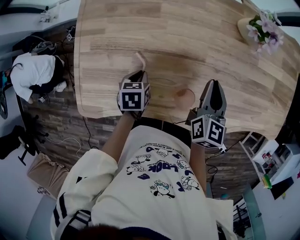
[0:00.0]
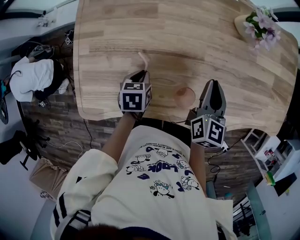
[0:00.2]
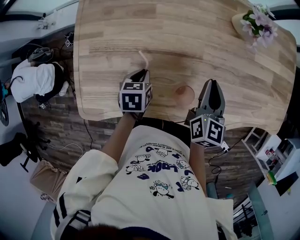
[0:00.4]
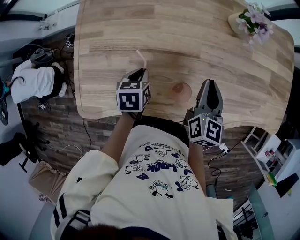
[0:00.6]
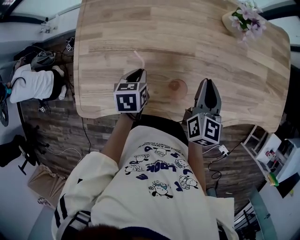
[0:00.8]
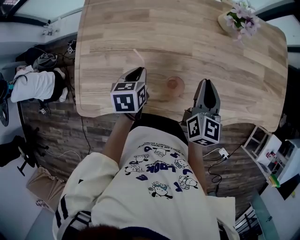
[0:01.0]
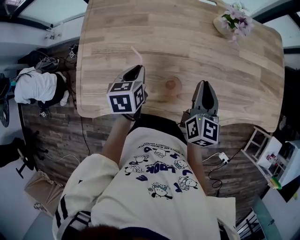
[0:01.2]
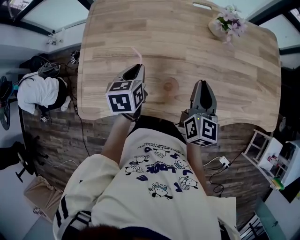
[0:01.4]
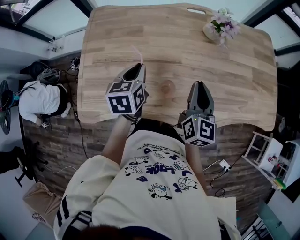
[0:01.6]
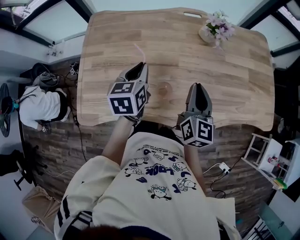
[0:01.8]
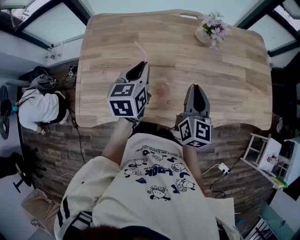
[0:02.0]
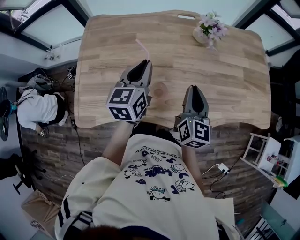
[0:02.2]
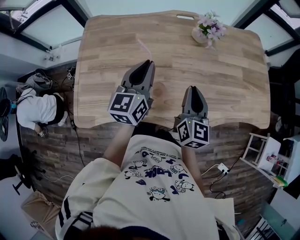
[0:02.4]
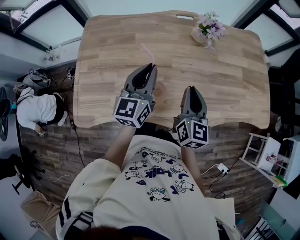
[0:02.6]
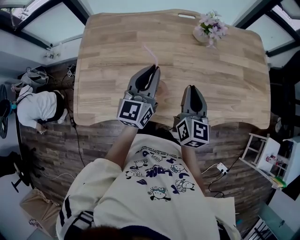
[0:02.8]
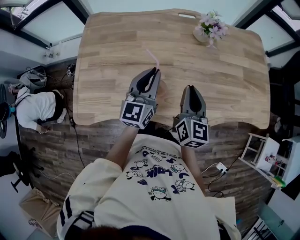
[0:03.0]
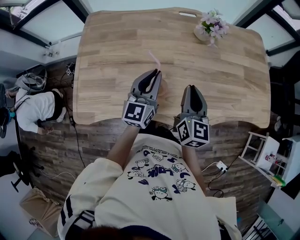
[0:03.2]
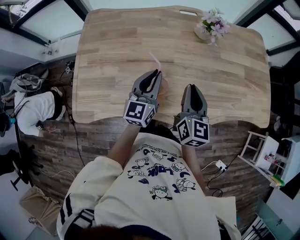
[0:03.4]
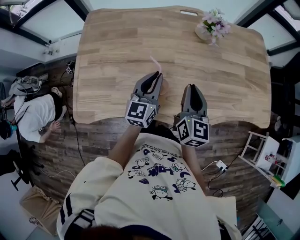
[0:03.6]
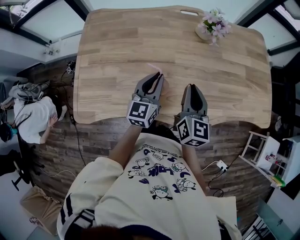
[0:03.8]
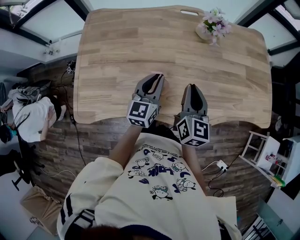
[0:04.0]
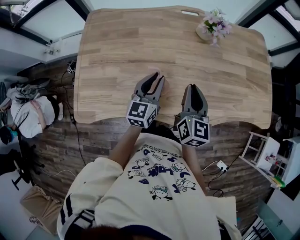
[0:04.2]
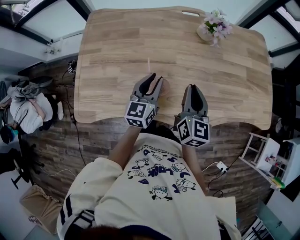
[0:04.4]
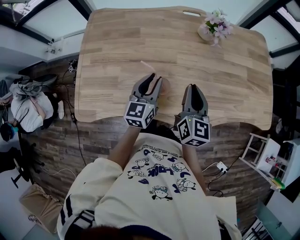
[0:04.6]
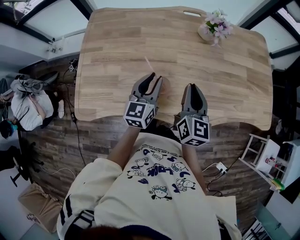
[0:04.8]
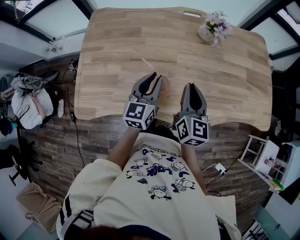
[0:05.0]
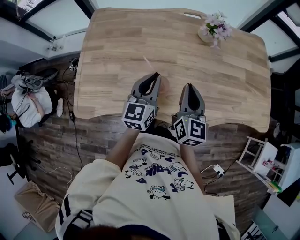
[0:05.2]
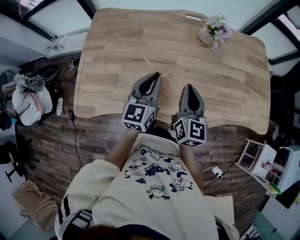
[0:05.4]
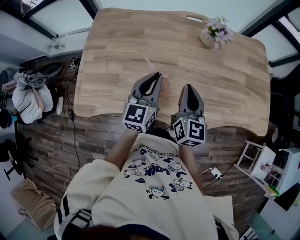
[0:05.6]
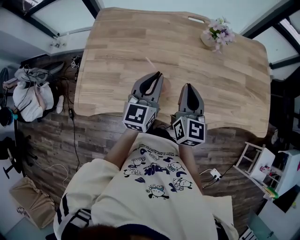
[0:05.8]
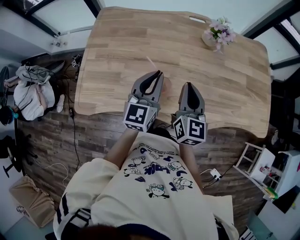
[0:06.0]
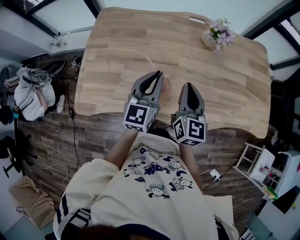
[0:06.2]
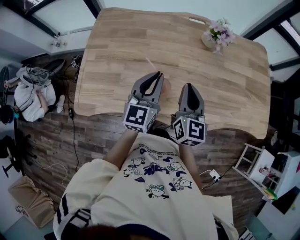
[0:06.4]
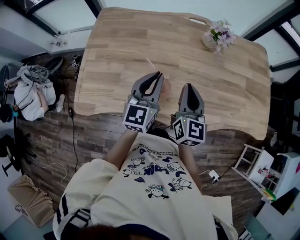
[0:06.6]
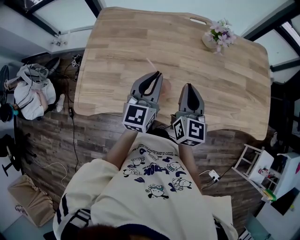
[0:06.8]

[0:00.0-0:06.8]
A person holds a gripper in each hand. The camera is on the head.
0:00.0 to 0:01.4: The right gripper moves upward and backward, approximately 10 cm. Meanwhile the left gripper heads upward, covering about 15 cm, and swivels about 20 degrees.
0:01.4 to 0:02.8: The left gripper is displaced to the right and upward by about 15 cm, and tips its fingers upward by about 40 degrees.
0:02.8 to 0:04.0: The left gripper goes about 10 cm downward.
0:04.0 to 0:05.4: The left gripper heads upward, covering roughly 5 cm.
0:05.4 to 0:06.8: The grippers make only small movements.

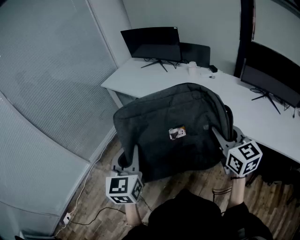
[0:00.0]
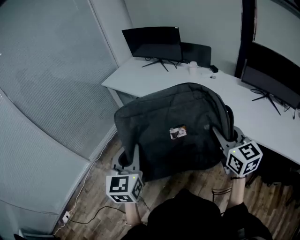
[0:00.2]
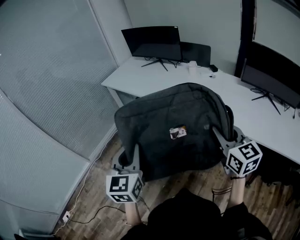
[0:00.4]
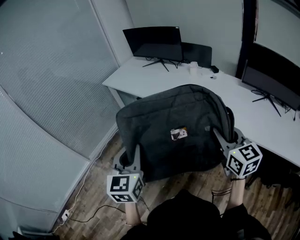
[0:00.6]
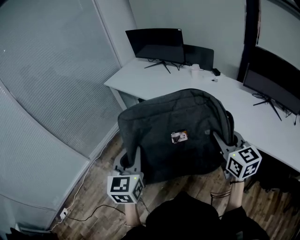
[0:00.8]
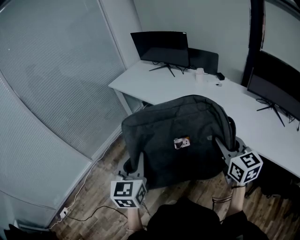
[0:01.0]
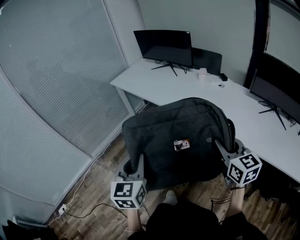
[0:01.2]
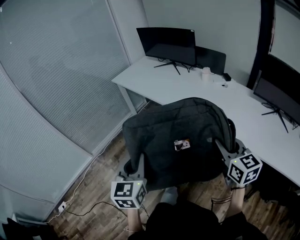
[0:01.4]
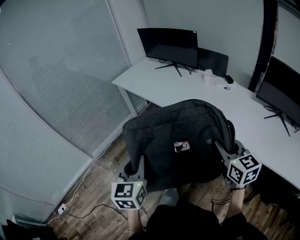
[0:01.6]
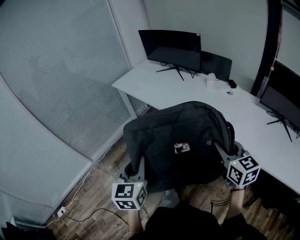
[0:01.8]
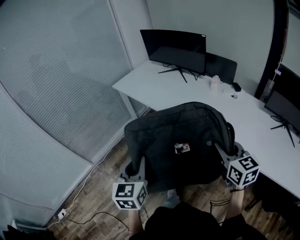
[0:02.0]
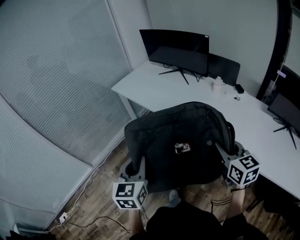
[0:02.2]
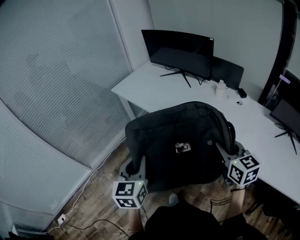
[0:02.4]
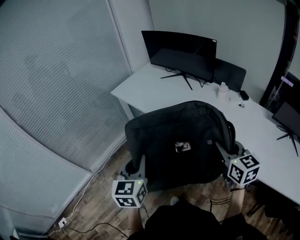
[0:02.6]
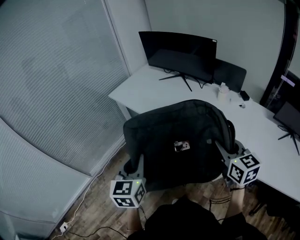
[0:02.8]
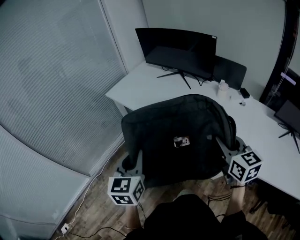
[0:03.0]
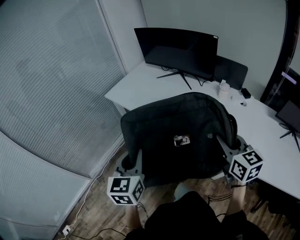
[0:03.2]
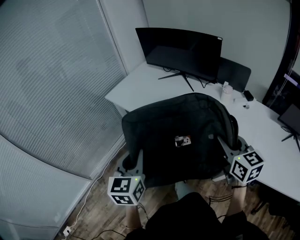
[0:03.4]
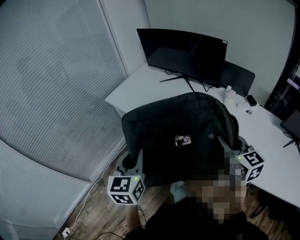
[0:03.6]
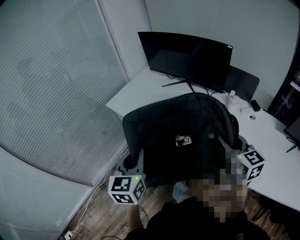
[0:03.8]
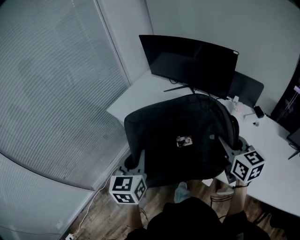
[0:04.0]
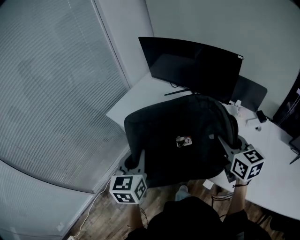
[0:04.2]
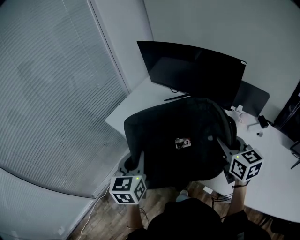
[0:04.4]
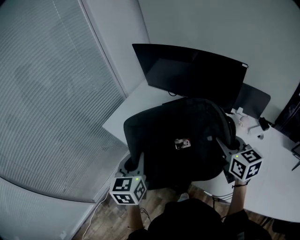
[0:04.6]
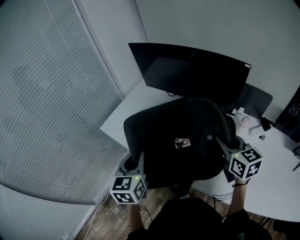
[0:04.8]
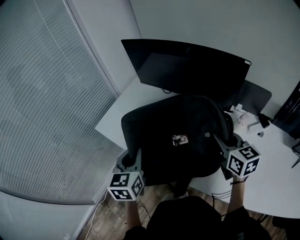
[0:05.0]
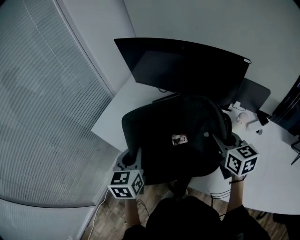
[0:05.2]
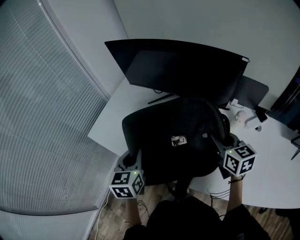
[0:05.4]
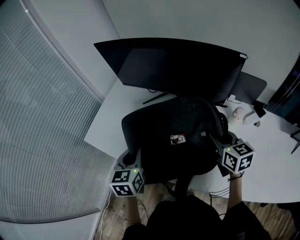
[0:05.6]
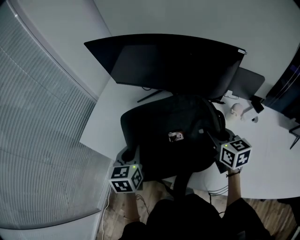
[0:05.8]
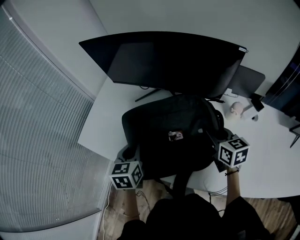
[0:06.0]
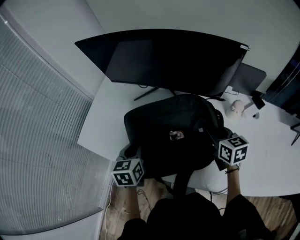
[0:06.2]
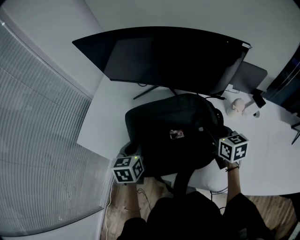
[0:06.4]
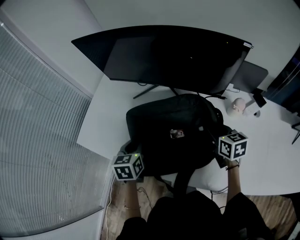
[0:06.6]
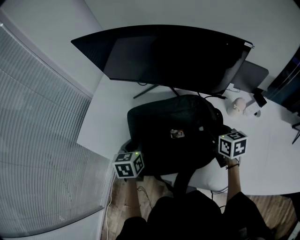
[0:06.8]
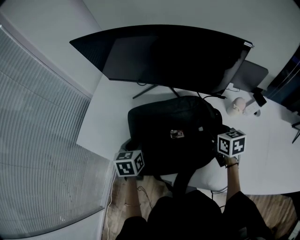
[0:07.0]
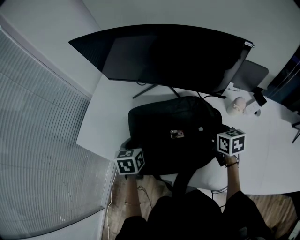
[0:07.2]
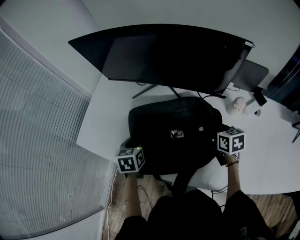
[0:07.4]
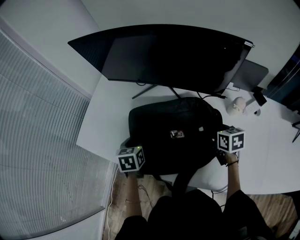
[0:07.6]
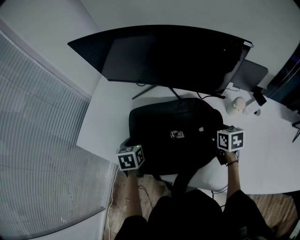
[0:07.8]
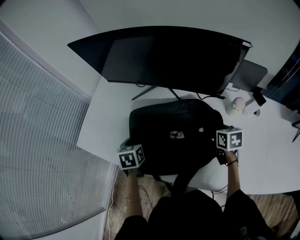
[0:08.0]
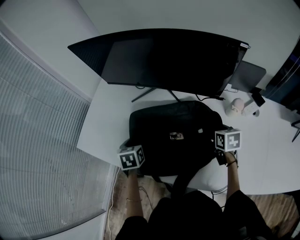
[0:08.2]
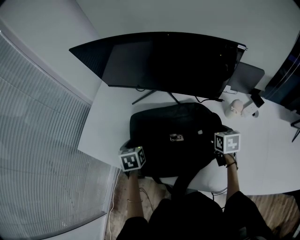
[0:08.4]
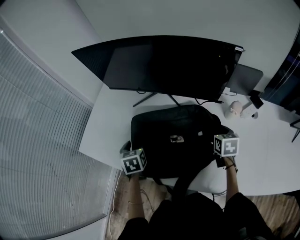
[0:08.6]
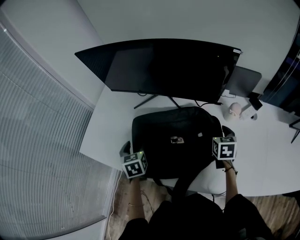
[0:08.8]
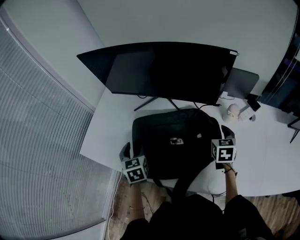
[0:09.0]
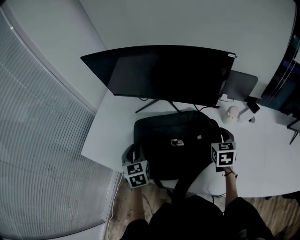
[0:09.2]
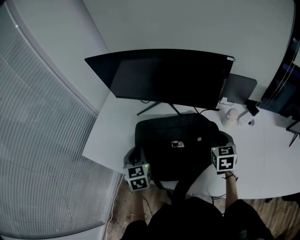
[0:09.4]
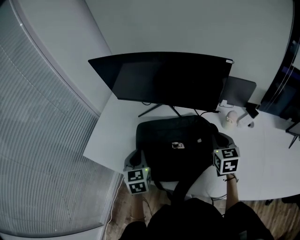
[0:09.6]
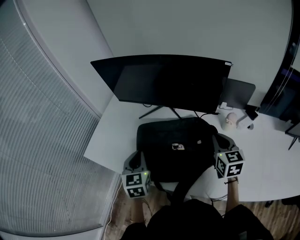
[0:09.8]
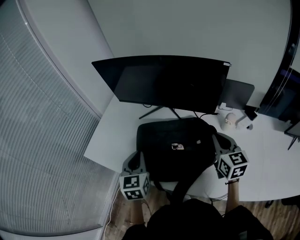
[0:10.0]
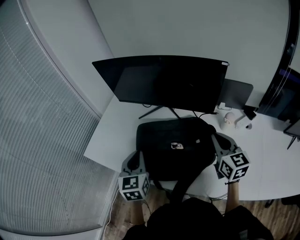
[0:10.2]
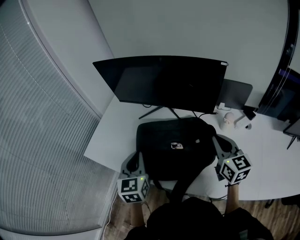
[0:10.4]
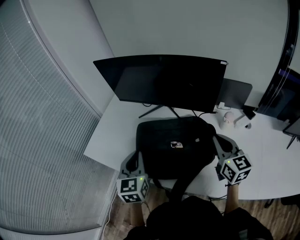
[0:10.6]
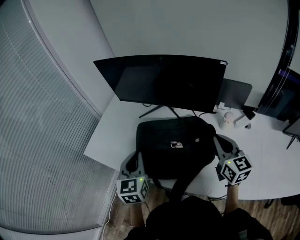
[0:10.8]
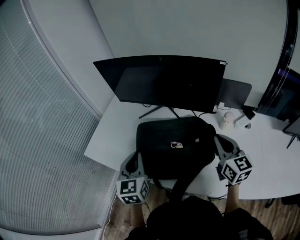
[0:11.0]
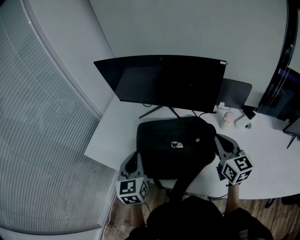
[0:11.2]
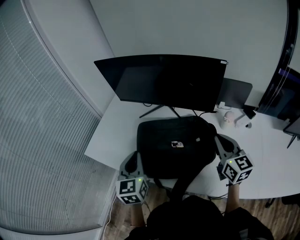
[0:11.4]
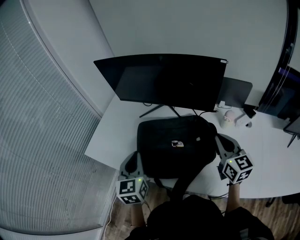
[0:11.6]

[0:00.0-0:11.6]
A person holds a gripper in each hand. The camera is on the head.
0:00.0 to 0:01.4: The grippers make only small movements.
0:01.4 to 0:02.8: Both grippers move forward, roughly 30 cm.
0:02.8 to 0:04.4: Both grippers move forward, some 30 cm.
0:04.4 to 0:05.8: The right gripper travels forward, downward and to the right by some 20 cm. Meanwhile the left gripper shifts roughly 20 cm forward and downward.
0:05.8 to 0:07.2: The left gripper moves downward and forward, roughly 10 cm; the right gripper shifts roughly 10 cm downward.
0:07.2 to 0:08.8: The right gripper swivels roughly 20 degrees, and opens its fingers; the left gripper opens up.
0:08.8 to 0:10.2: Both grippers travel together upward and backward, some 15 cm. The left gripper turns by about 20 degrees, and closes its fingers; the right gripper rotates some 30 degrees, and closes.
0:10.2 to 0:11.6: The grippers move only a little.

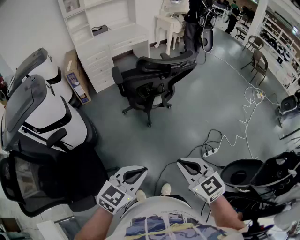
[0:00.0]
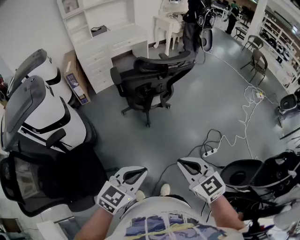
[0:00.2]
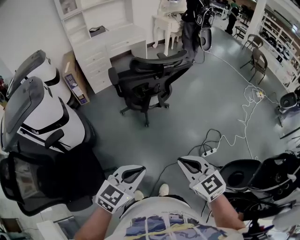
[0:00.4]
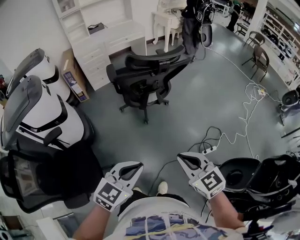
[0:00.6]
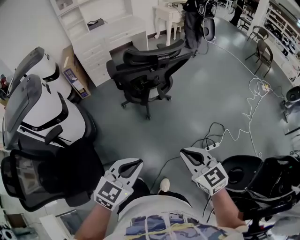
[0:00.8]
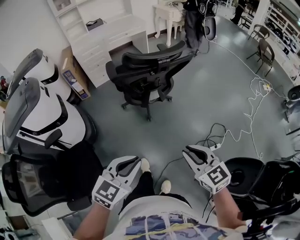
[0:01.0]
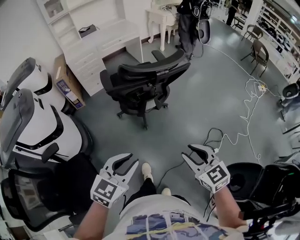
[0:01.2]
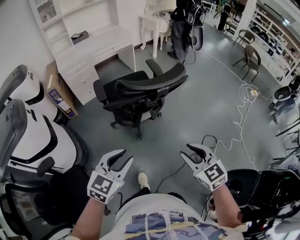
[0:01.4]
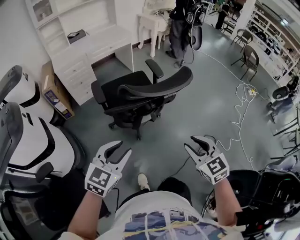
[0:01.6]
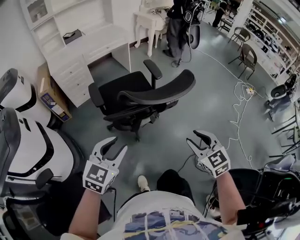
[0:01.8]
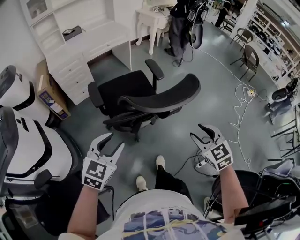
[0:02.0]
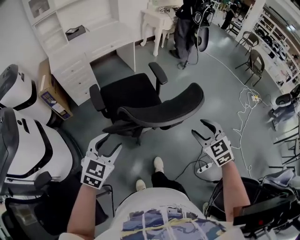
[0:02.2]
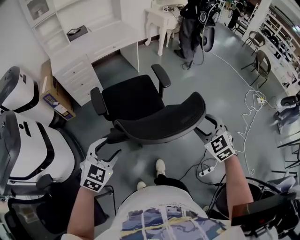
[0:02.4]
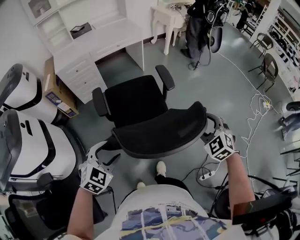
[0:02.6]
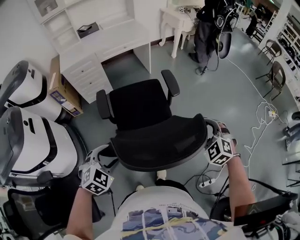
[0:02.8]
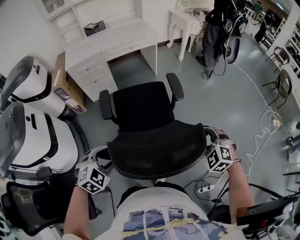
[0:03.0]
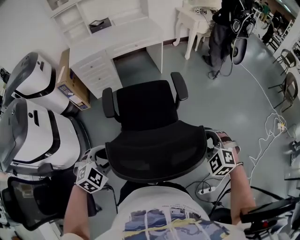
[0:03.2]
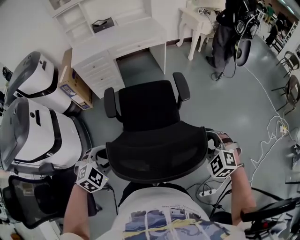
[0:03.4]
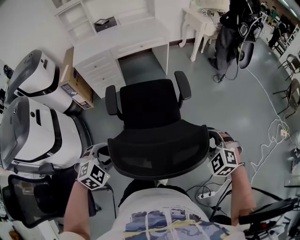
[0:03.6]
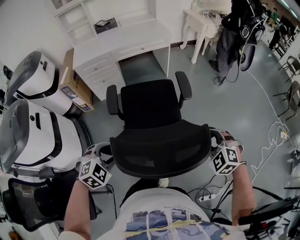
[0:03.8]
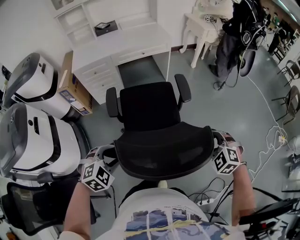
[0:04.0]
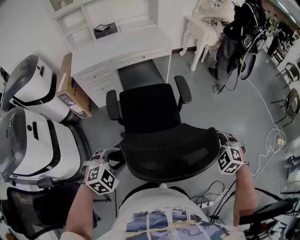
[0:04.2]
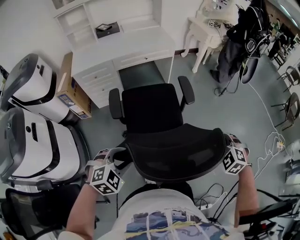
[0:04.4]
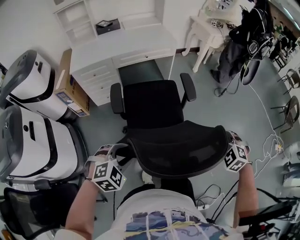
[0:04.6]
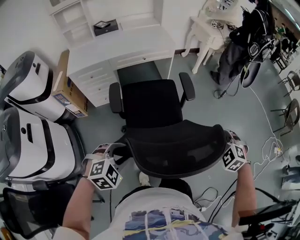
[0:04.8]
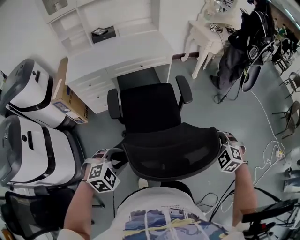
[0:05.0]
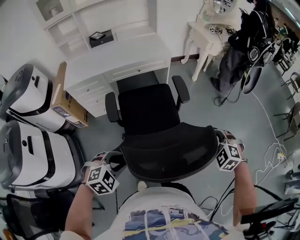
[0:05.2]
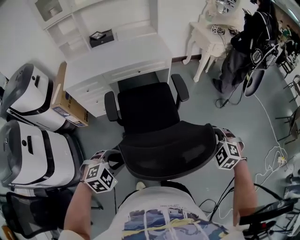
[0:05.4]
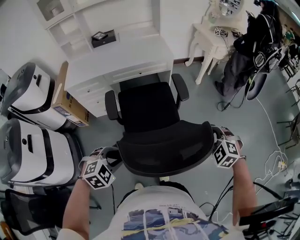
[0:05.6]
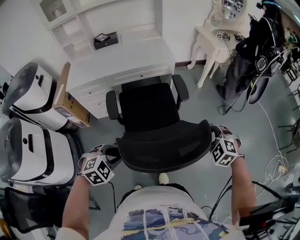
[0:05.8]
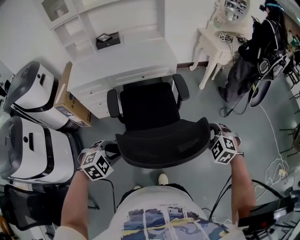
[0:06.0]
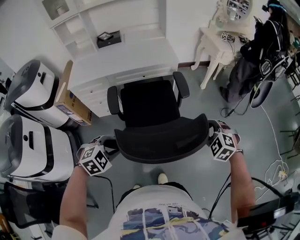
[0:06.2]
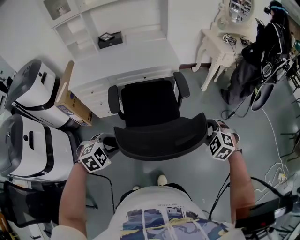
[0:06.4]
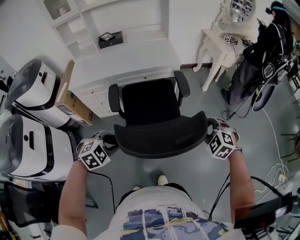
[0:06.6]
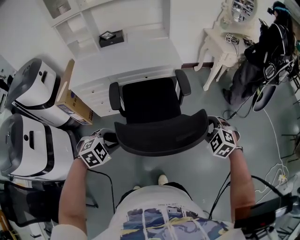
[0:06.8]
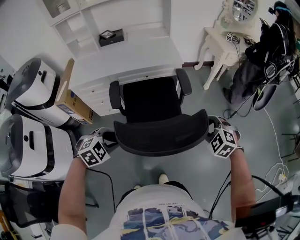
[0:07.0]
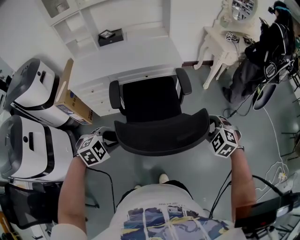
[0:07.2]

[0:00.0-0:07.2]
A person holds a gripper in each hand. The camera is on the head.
0:00.0 to 0:01.4: The grippers both shift forward by roughly 20 cm. The right gripper opens its fingers. Meanwhile the left gripper opens its fingers.
0:01.4 to 0:02.8: The right gripper travels forward by approximately 35 cm, changes its angle by approximately 40 degrees, and opens; the left gripper heads forward, covering roughly 25 cm, turns by roughly 30 degrees, and opens.
0:02.8 to 0:04.4: Both grippers move forward, about 15 cm.
0:04.4 to 0:05.8: Both grippers travel together forward, some 20 cm.
0:05.8 to 0:07.2: The grippers both shift forward by some 10 cm.
